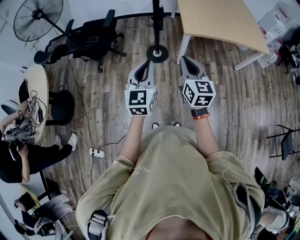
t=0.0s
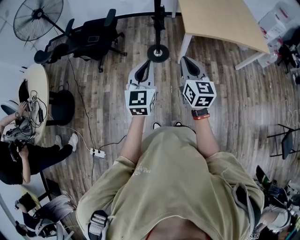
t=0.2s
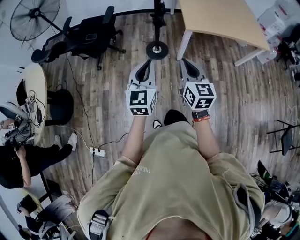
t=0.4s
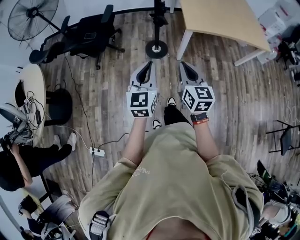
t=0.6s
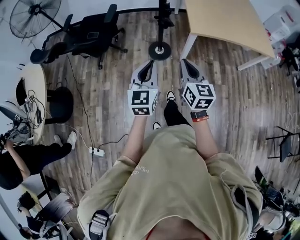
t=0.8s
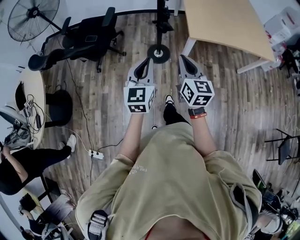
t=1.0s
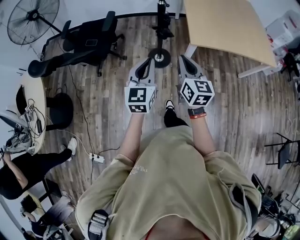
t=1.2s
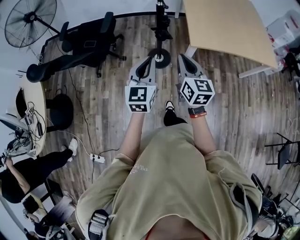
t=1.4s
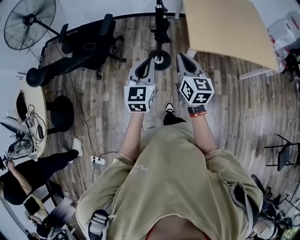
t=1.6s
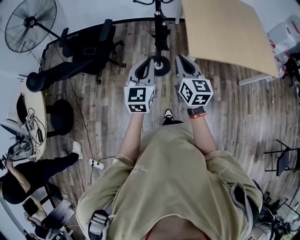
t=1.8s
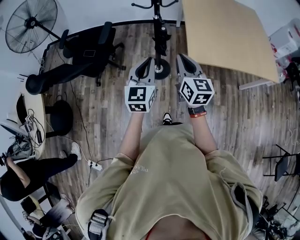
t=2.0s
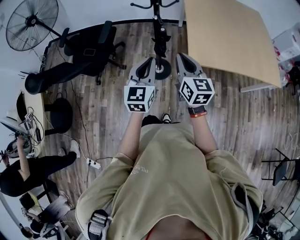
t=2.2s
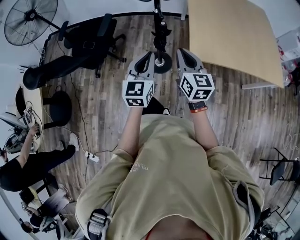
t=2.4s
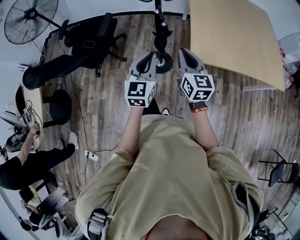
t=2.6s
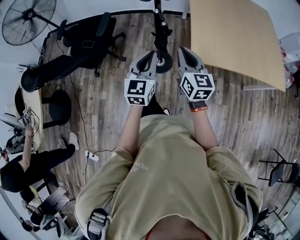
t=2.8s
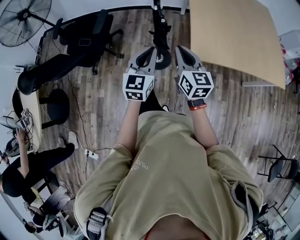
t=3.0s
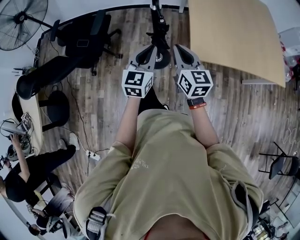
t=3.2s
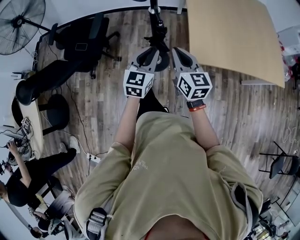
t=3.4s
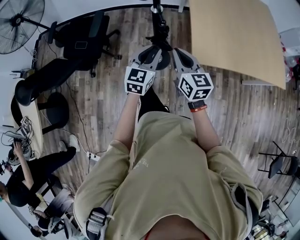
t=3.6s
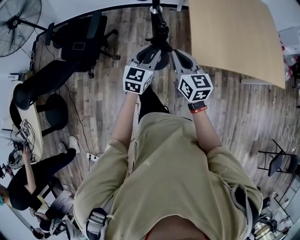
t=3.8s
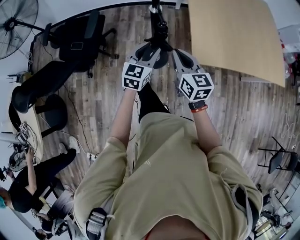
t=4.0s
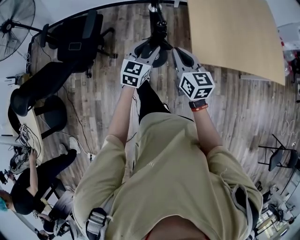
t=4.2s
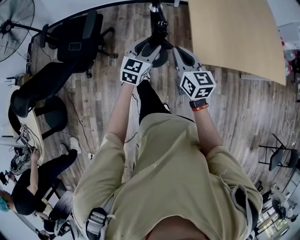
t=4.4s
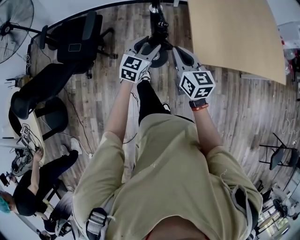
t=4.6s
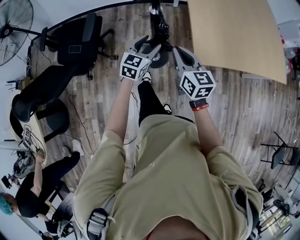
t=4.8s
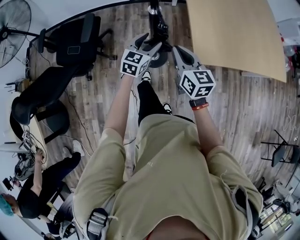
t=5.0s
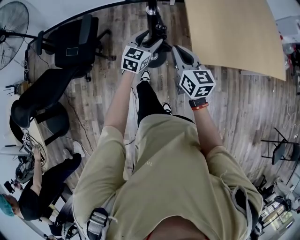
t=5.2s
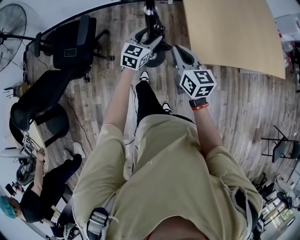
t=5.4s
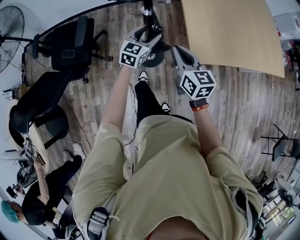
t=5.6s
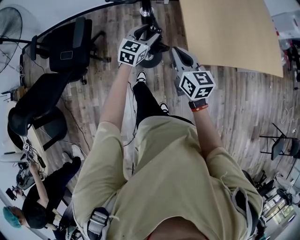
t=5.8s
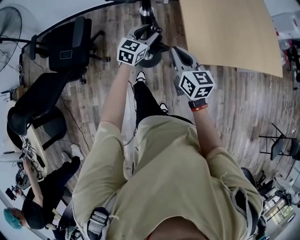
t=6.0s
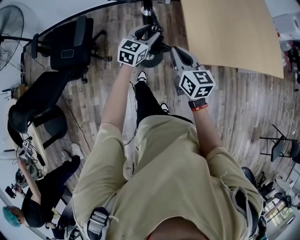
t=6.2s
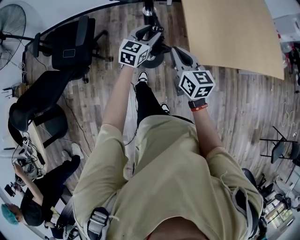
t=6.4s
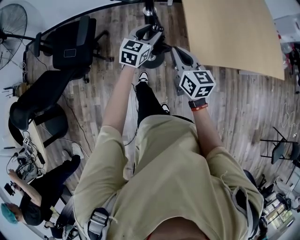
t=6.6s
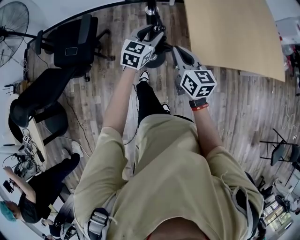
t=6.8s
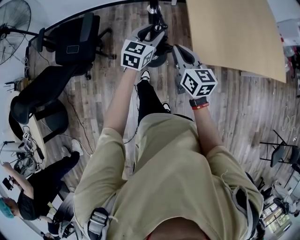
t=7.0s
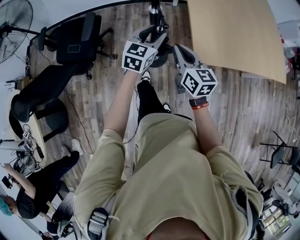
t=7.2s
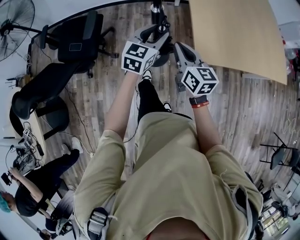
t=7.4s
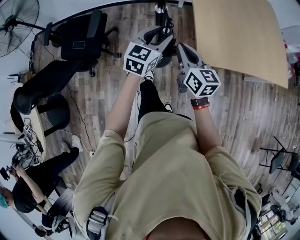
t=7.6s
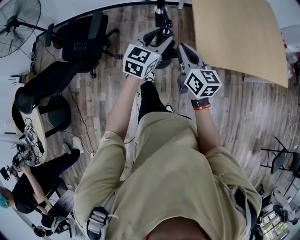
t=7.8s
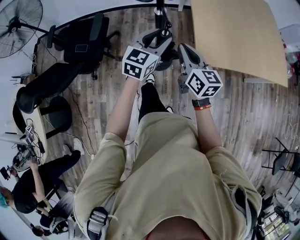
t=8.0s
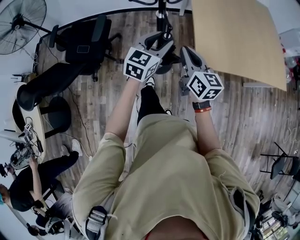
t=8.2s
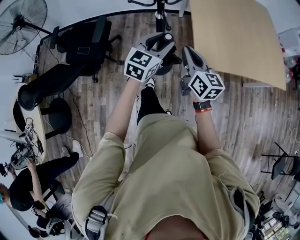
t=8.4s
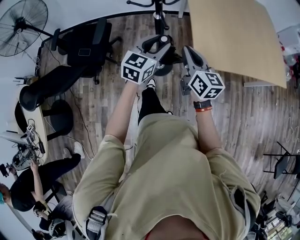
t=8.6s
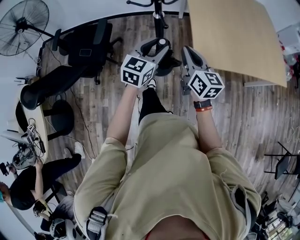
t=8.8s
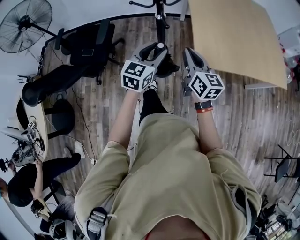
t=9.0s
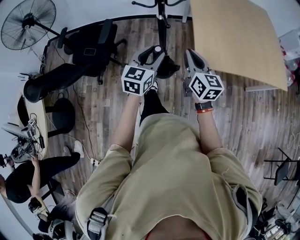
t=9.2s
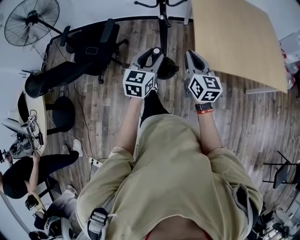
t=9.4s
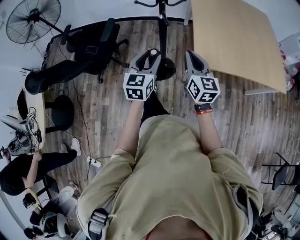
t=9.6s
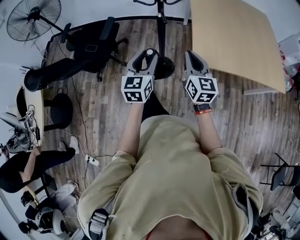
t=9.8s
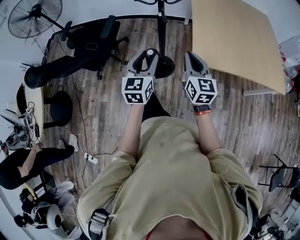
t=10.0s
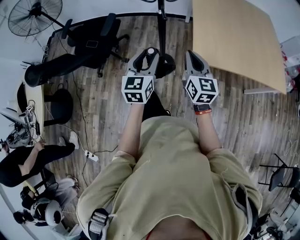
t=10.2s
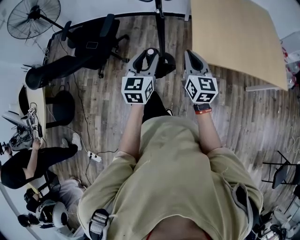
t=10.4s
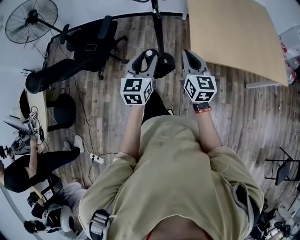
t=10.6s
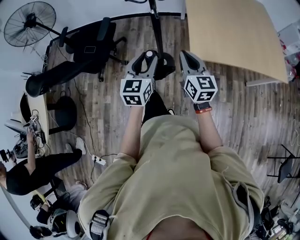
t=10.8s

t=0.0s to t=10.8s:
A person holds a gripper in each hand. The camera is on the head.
t=0.0s to t=1.6s: The two grippers go approximately 25 cm forward.
t=1.6s to t=3.0s: The left gripper travels forward and to the right by some 20 cm; the right gripper travels forward by some 20 cm.
t=3.0s to t=4.6s: The left gripper goes some 20 cm forward and downward, and opens up. The right gripper travels forward and downward by roughly 10 cm.
t=4.6s to t=6.2s: The left gripper is displaced forward by about 10 cm.
t=6.2s to t=7.8s: The left gripper travels upward and backward by about 15 cm. Meanwhile the right gripper goes approximately 5 cm upward.
t=7.8s to t=9.2s: The right gripper moves backward and to the right, approximately 10 cm. The left gripper is displaced backward by some 10 cm.
t=9.2s to t=10.8s: The grippers both shift backward by about 10 cm.

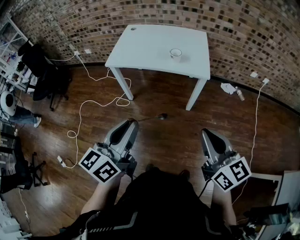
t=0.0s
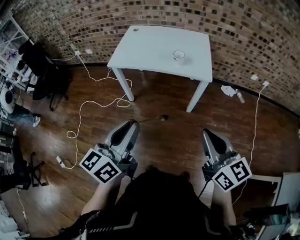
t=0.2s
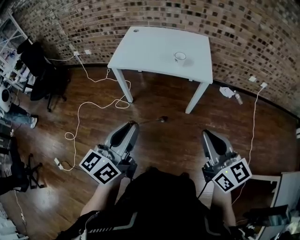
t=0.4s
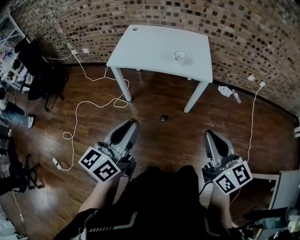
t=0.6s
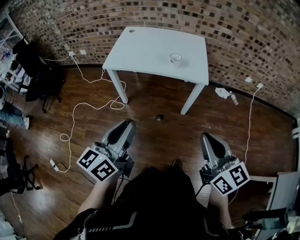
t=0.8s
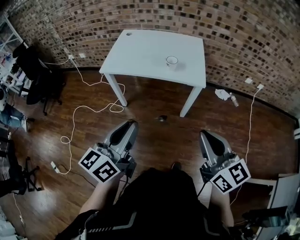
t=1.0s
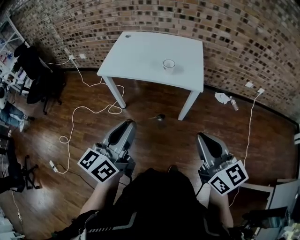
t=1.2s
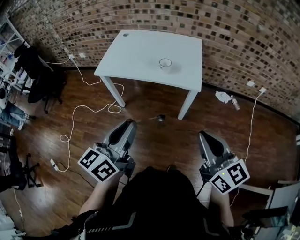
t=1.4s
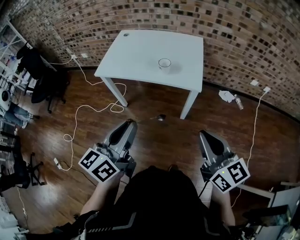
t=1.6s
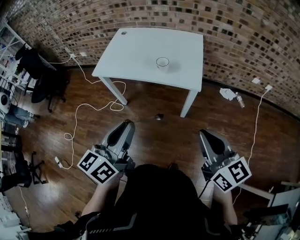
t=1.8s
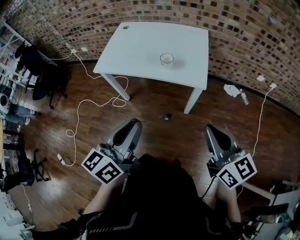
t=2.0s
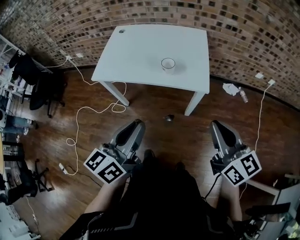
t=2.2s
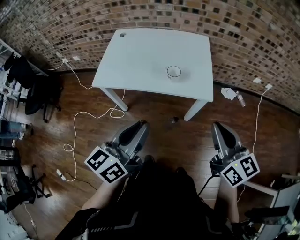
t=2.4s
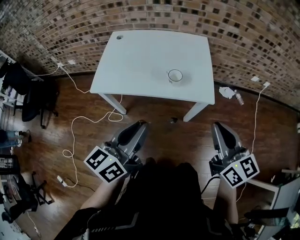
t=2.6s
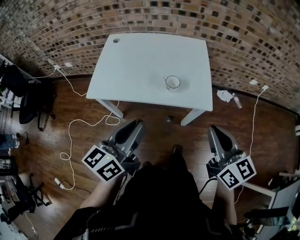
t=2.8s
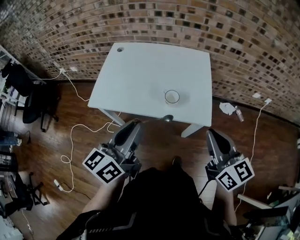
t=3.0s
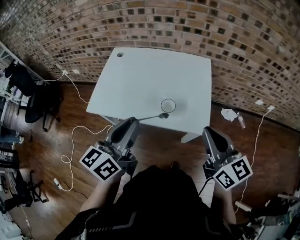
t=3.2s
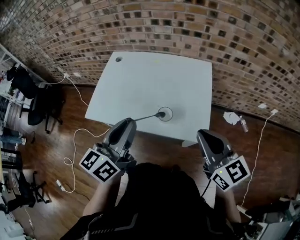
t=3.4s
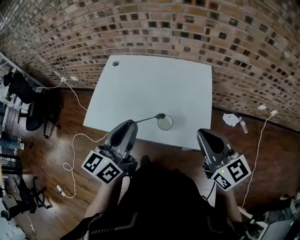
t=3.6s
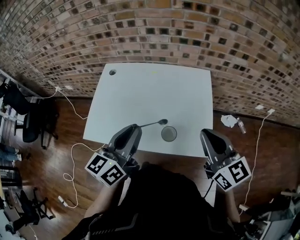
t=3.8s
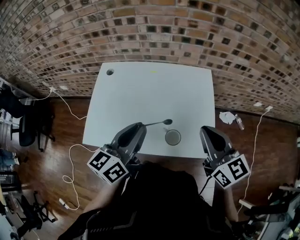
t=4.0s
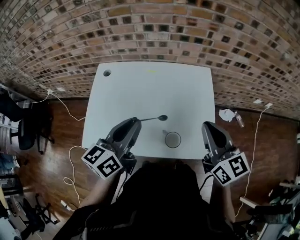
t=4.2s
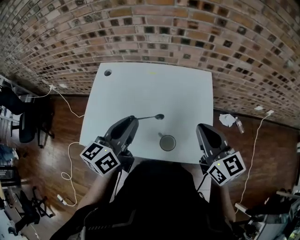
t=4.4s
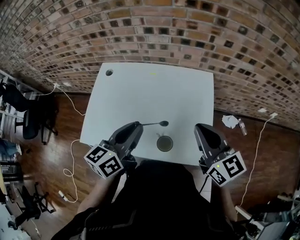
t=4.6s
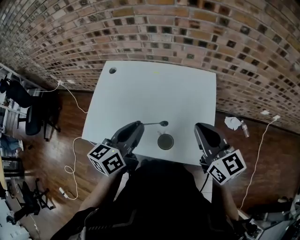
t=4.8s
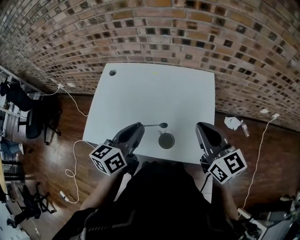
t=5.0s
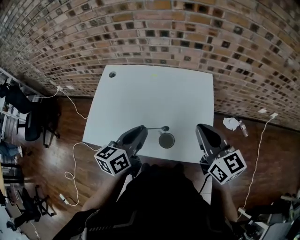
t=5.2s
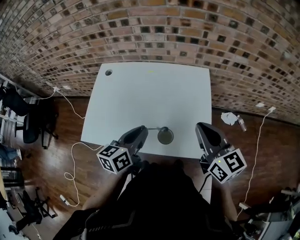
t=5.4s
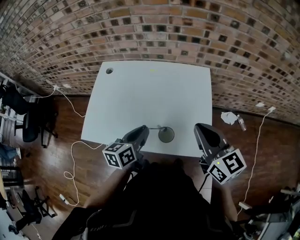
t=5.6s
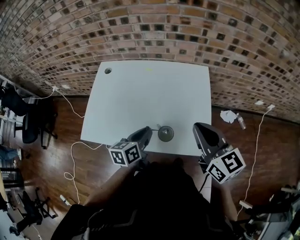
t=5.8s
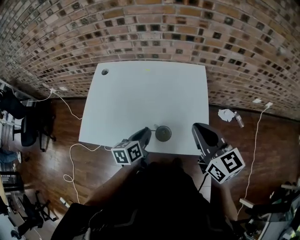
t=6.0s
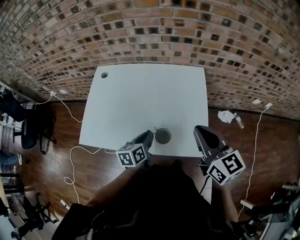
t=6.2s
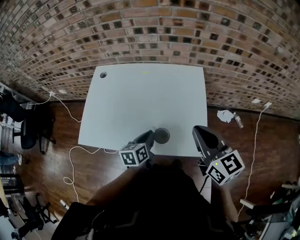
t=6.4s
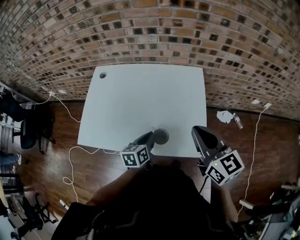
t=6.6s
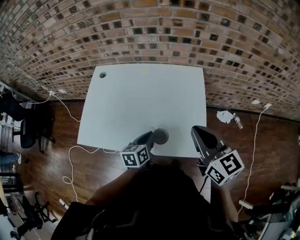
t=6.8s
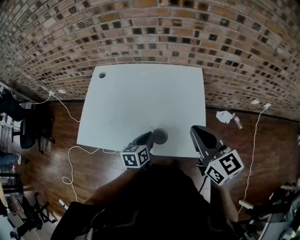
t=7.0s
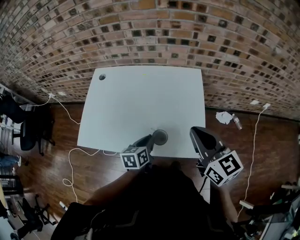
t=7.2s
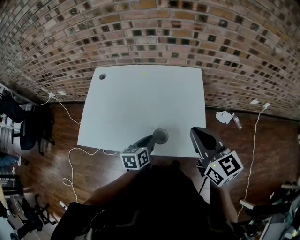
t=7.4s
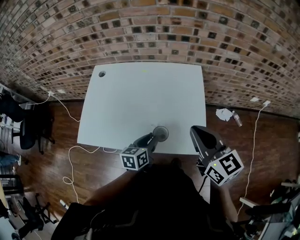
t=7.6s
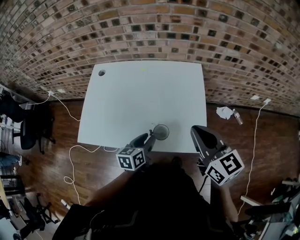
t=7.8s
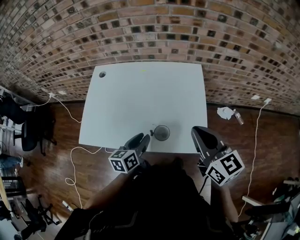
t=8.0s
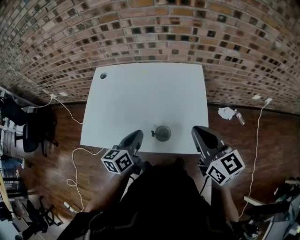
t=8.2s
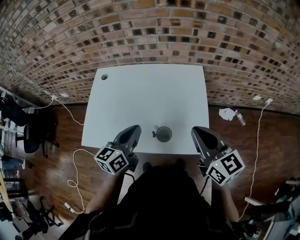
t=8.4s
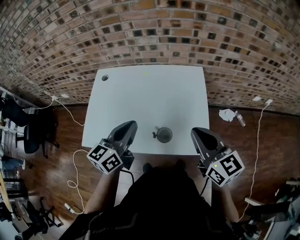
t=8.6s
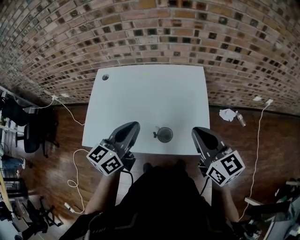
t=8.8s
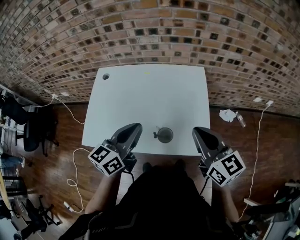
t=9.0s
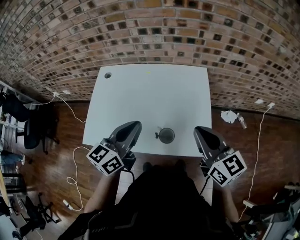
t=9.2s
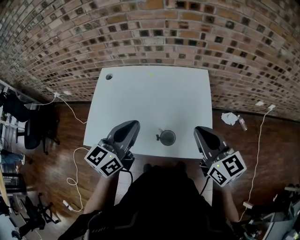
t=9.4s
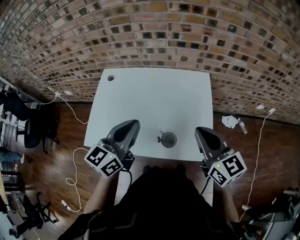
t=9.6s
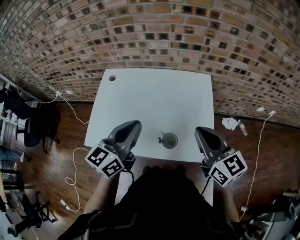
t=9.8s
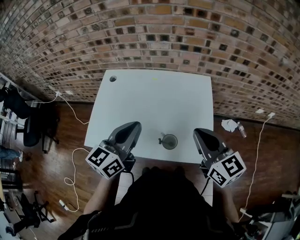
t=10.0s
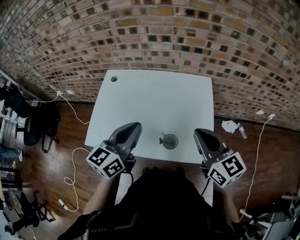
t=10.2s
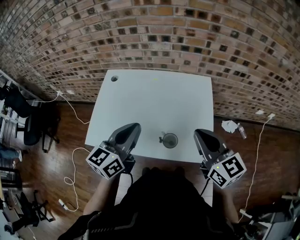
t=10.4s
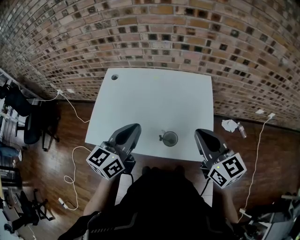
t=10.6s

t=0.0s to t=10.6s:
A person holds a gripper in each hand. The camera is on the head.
t=0.0s to t=1.6s: The grippers both shift forward and to the right by roughly 15 cm.
t=1.6s to t=3.0s: Both grippers move forward, roughly 25 cm.
t=3.0s to t=4.6s: The two grippers go some 25 cm forward.
t=4.6s to t=6.0s: The right gripper is displaced backward by roughly 5 cm, while the left gripper goes approximately 15 cm downward, and turns by some 20 degrees.
t=6.0s to t=7.6s: The left gripper changes place by roughly 5 cm.
t=7.6s to t=9.0s: The left gripper heads upward, covering about 20 cm, swivels approximately 30 degrees, and closes up.
t=9.0s to t=10.6s: There are only small adjustments of the grippers.

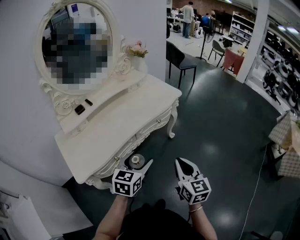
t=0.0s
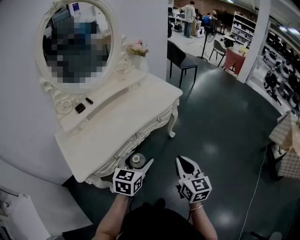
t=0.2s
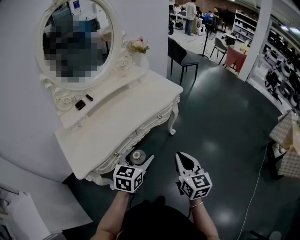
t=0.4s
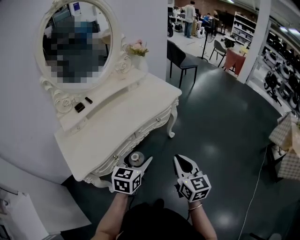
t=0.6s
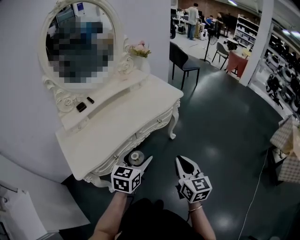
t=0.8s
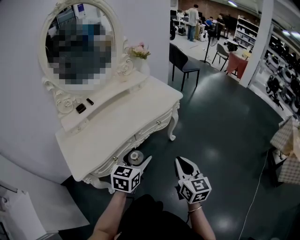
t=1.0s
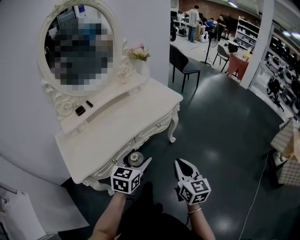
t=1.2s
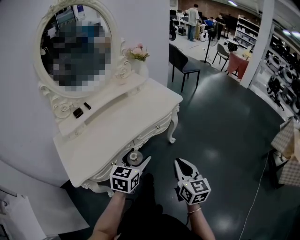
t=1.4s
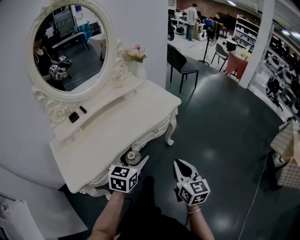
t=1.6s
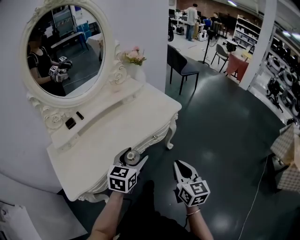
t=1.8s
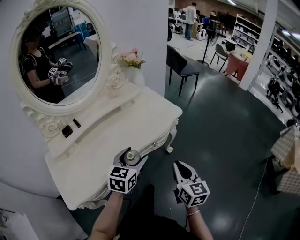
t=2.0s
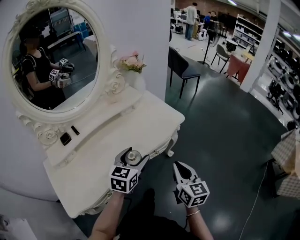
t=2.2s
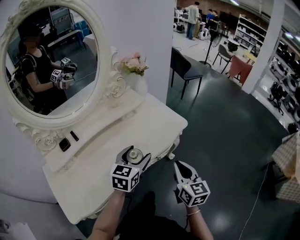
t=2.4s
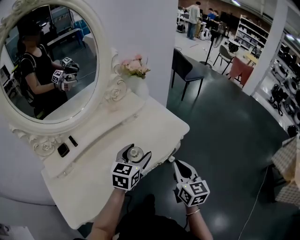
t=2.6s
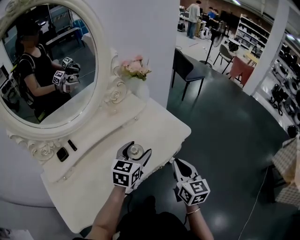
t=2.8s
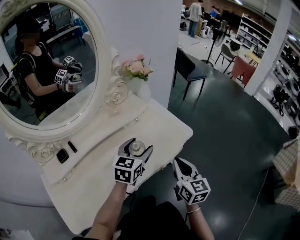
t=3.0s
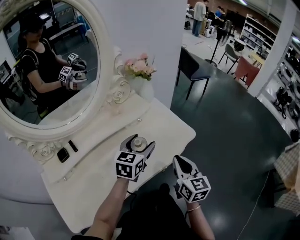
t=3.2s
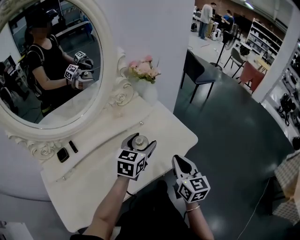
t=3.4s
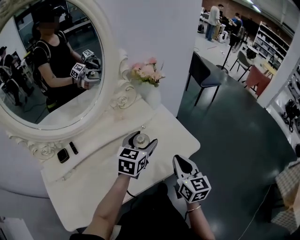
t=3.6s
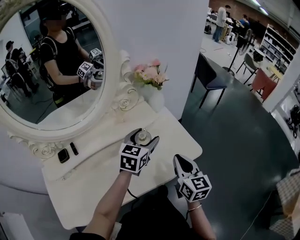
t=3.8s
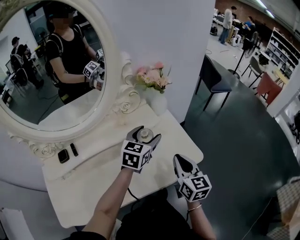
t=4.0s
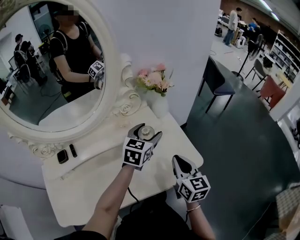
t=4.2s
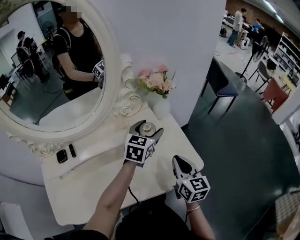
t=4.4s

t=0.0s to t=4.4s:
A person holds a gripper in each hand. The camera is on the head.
t=0.0s to t=1.4s: There are only small adjustments of the grippers.
t=1.4s to t=3.0s: Both grippers travel together forward, some 25 cm.
t=3.0s to t=4.4s: Both grippers travel together forward, approximately 15 cm.
